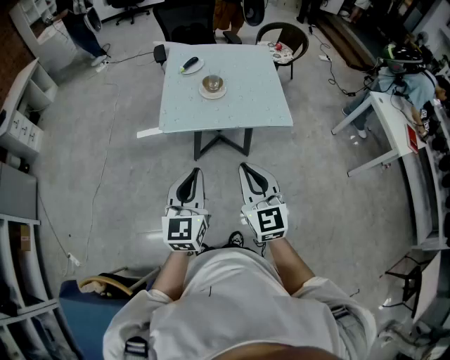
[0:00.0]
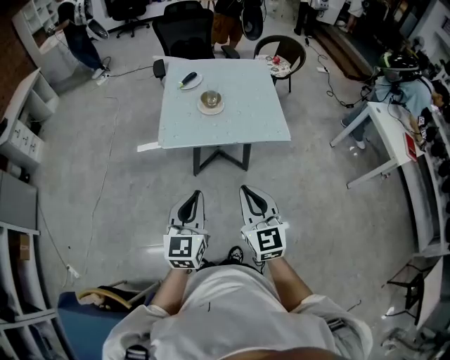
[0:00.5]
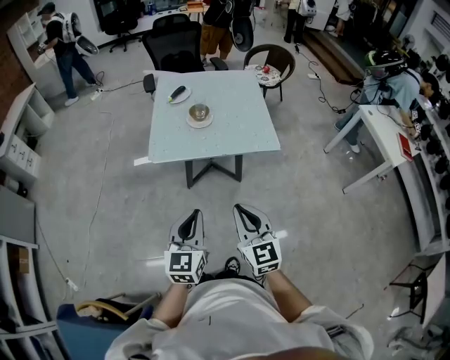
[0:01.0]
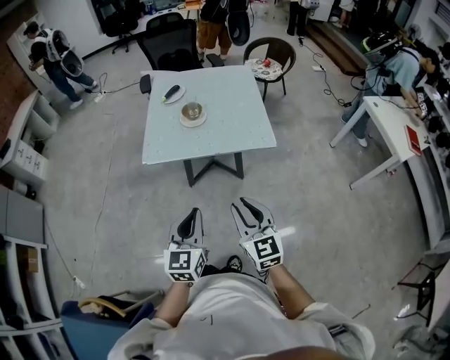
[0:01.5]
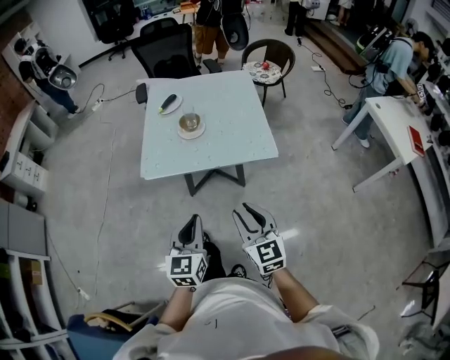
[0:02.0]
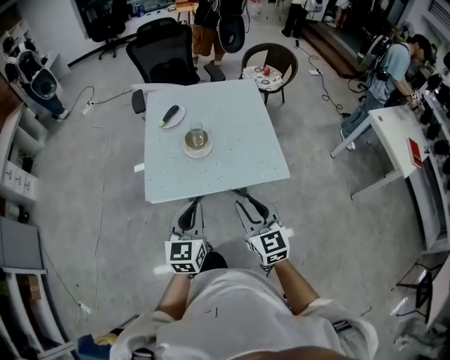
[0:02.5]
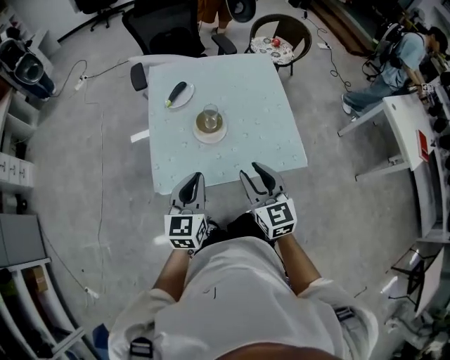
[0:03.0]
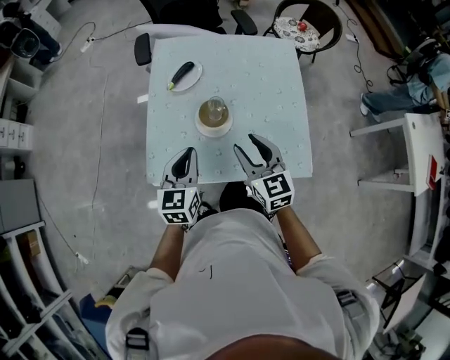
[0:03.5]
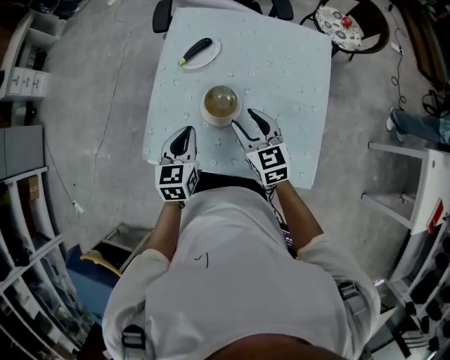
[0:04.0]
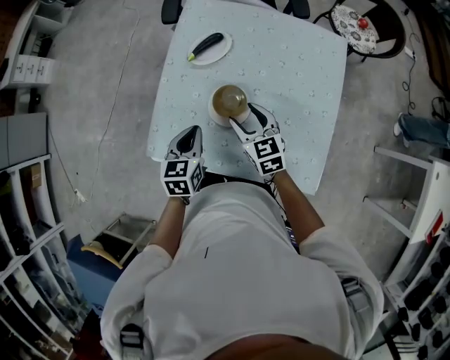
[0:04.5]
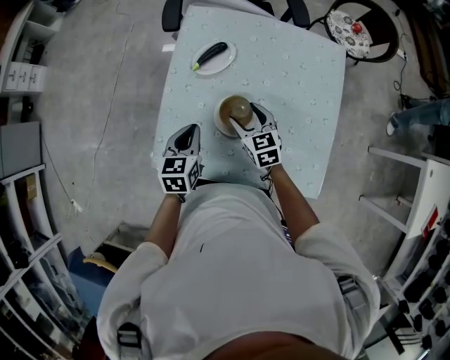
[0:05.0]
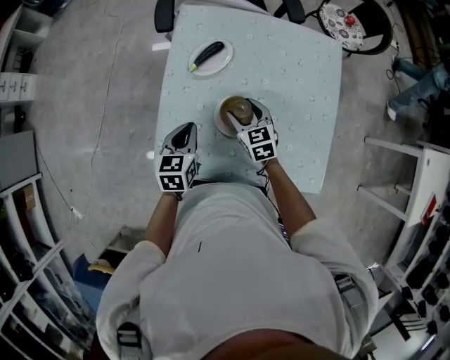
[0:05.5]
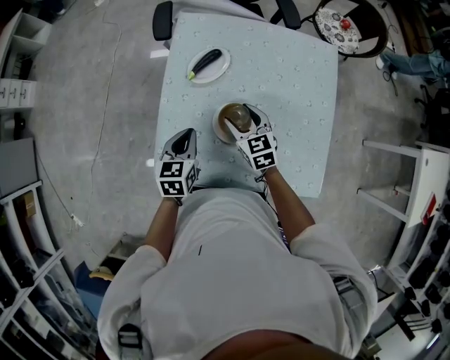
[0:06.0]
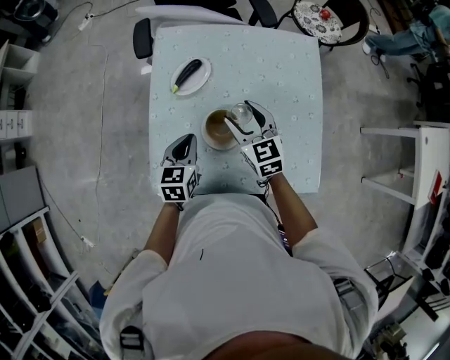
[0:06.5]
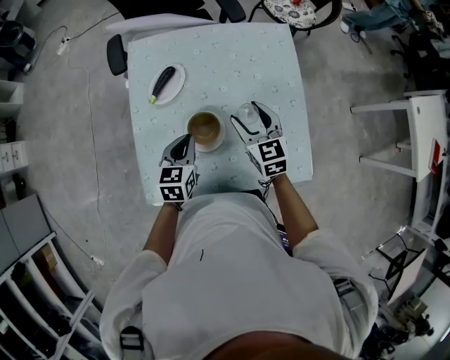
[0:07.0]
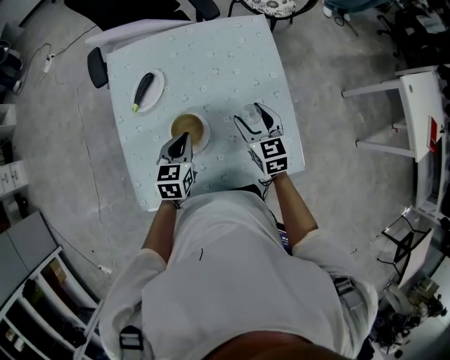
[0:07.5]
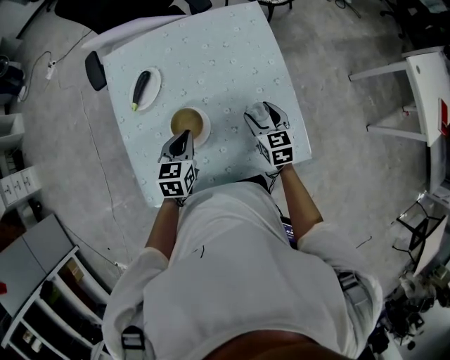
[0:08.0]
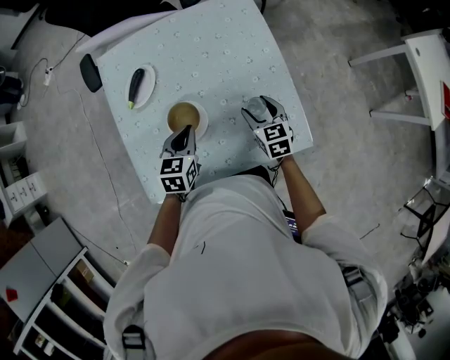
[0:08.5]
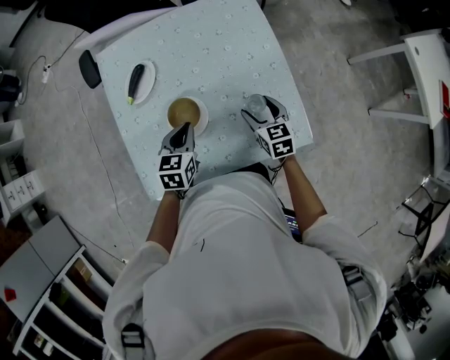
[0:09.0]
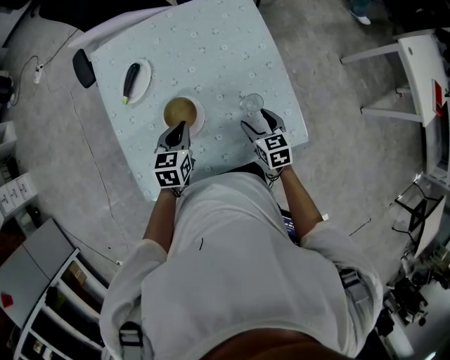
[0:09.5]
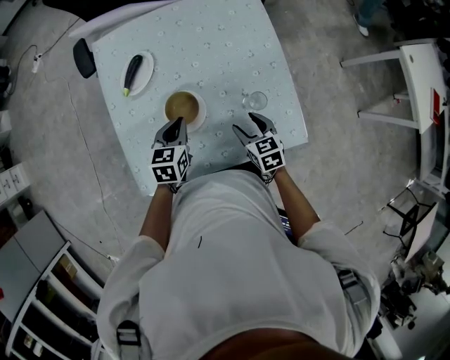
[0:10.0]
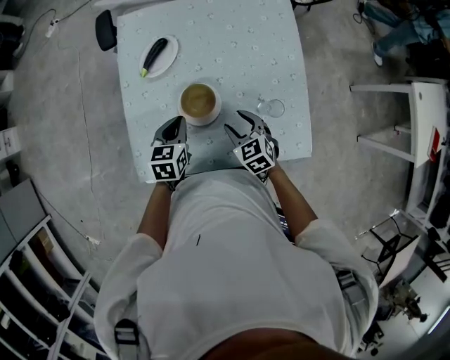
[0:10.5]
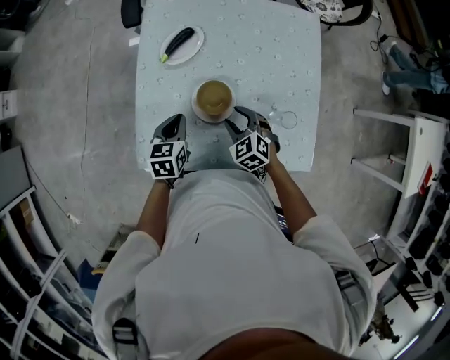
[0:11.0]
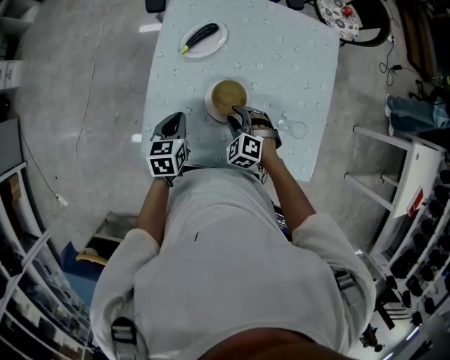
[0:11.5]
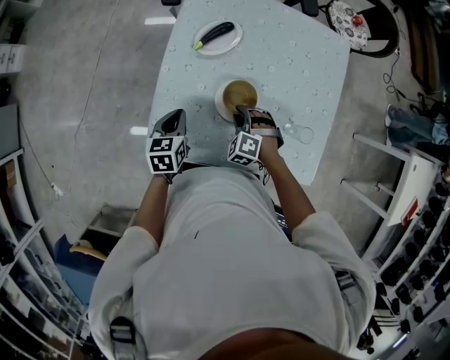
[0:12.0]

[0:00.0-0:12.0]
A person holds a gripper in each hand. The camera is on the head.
0:00.0 to 0:02.0: The grippers both shift to the right and downward by roughly 15 cm. The right gripper opens its fingers.
0:02.0 to 0:04.0: Both grippers are carried forward, approximately 50 cm. The left gripper changes its angle by approximately 20 degrees; the right gripper turns by approximately 20 degrees.
0:04.0 to 0:06.0: The left gripper travels forward, to the left and downward by approximately 10 cm. Meanwhile the right gripper goes roughly 15 cm forward, downward and to the left.
0:06.0 to 0:08.0: The right gripper shifts some 25 cm to the right, and swivels roughly 30 degrees. Meanwhile the left gripper moves to the right, some 15 cm, and turns by about 20 degrees.
0:08.0 to 0:10.0: The right gripper goes about 10 cm backward.
0:10.0 to 0:12.0: Both grippers move to the left, approximately 20 cm. The left gripper swivels about 30 degrees; the right gripper twists roughly 80 degrees counterclockwise, seen from behind, and closes up.

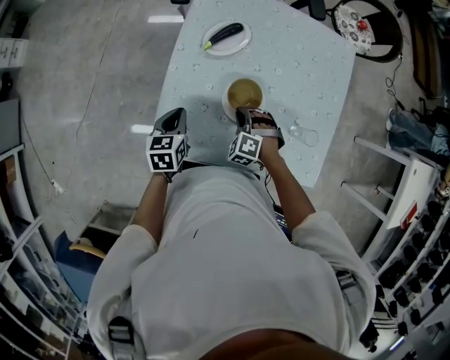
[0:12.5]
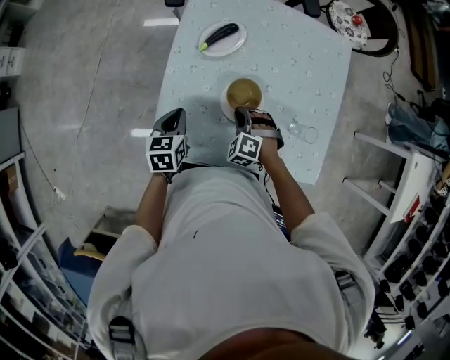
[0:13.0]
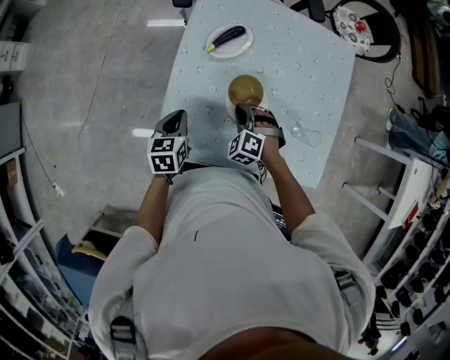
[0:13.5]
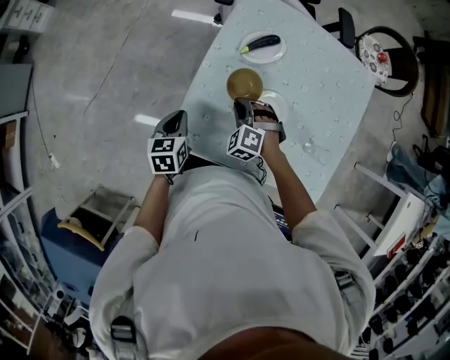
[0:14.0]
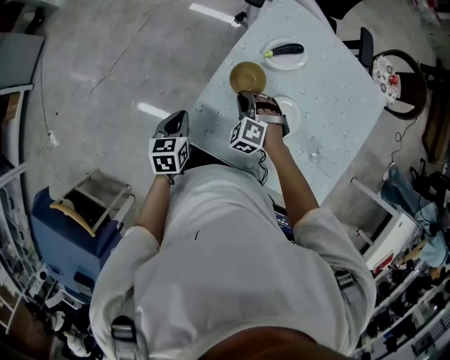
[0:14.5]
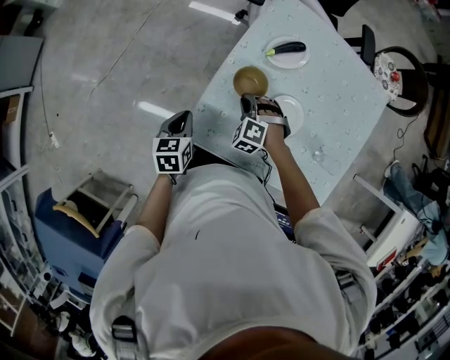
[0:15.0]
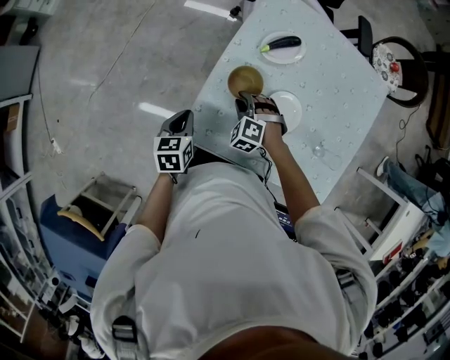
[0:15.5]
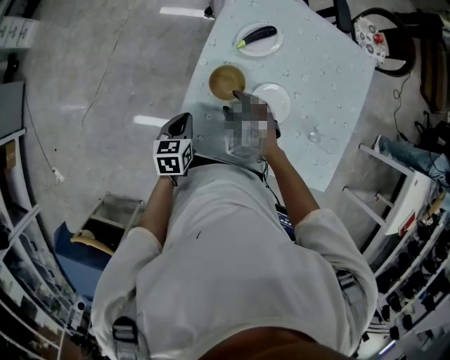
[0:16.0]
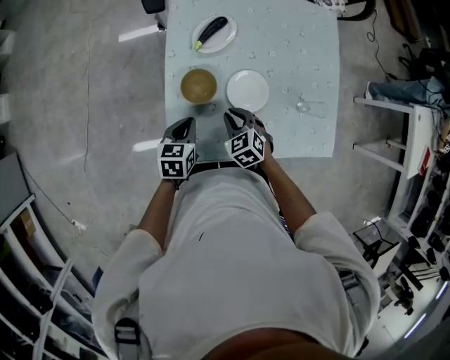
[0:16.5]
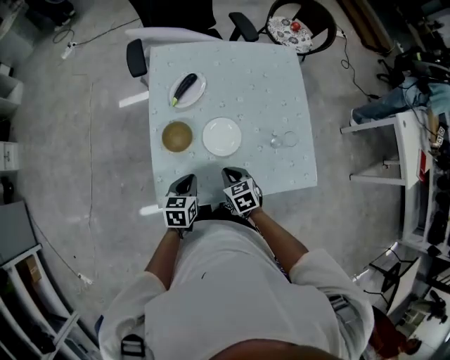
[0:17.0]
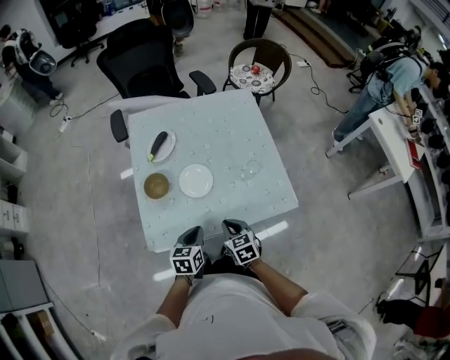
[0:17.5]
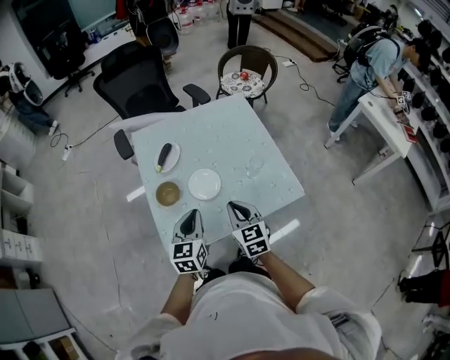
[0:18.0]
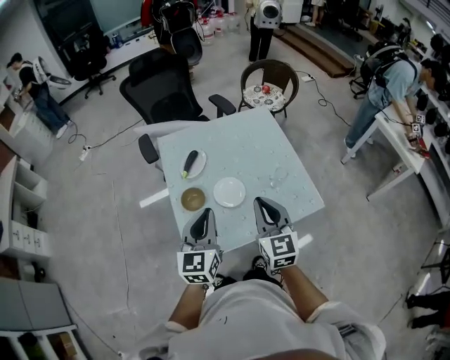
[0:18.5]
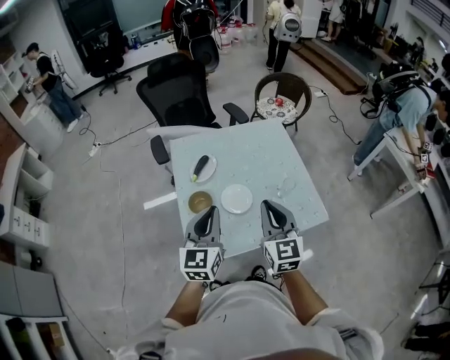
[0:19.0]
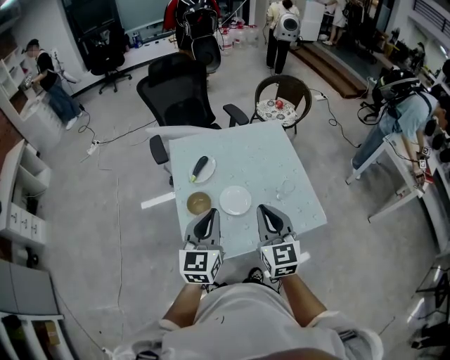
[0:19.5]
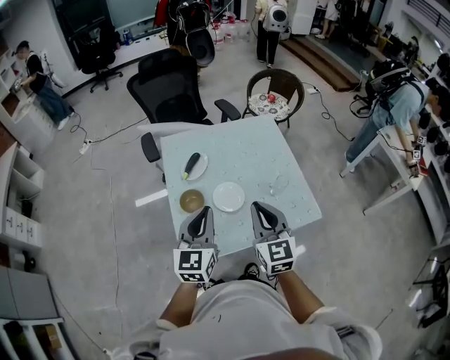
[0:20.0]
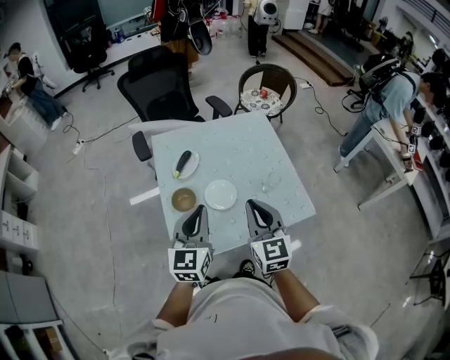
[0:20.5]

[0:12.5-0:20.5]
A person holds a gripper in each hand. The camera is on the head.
0:12.5 to 0:14.5: The left gripper moves to the left and backward, about 15 cm. Meanwhile the right gripper is displaced to the left by approximately 15 cm.
0:14.5 to 0:16.5: The left gripper moves some 15 cm, and turns by some 40 degrees. The right gripper ends up approximately 10 cm from where it was, twists about 60 degrees clockwise, seen from behind, and opens and closes again.
0:16.5 to 0:18.5: The left gripper moves upward, about 30 cm, and angles its fingers upward, by roughly 40 degrees, while the right gripper moves upward and to the right, about 35 cm, and tilts its fingers approximately 40 degrees upward.
0:18.5 to 0:20.5: The grippers stay close to where they were, moving slightly.

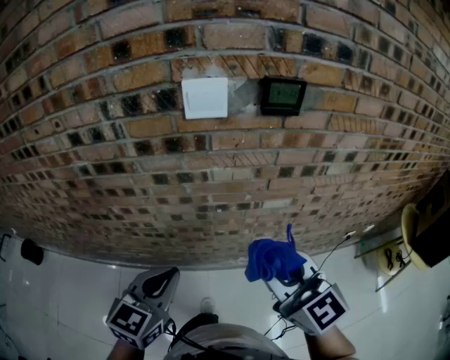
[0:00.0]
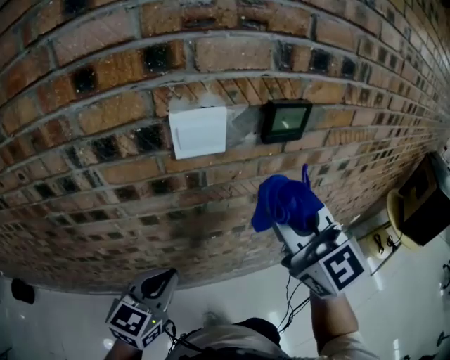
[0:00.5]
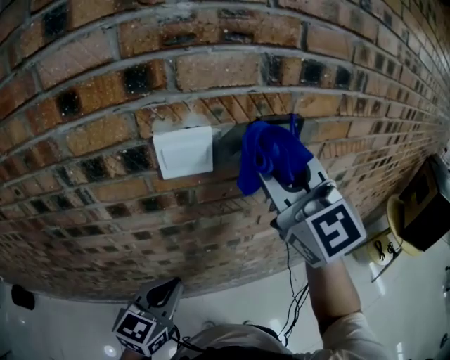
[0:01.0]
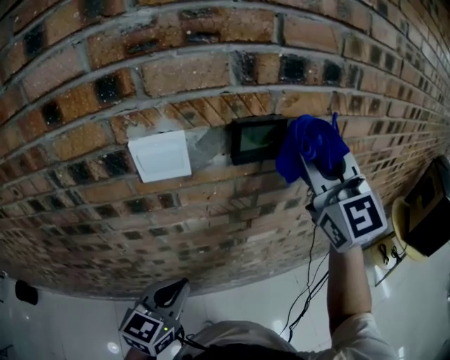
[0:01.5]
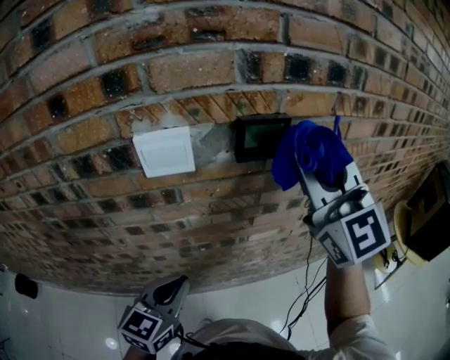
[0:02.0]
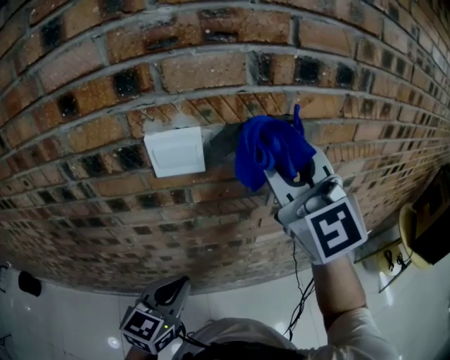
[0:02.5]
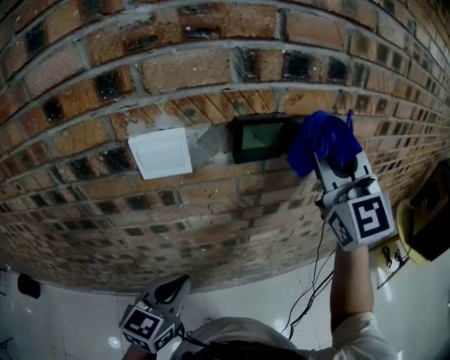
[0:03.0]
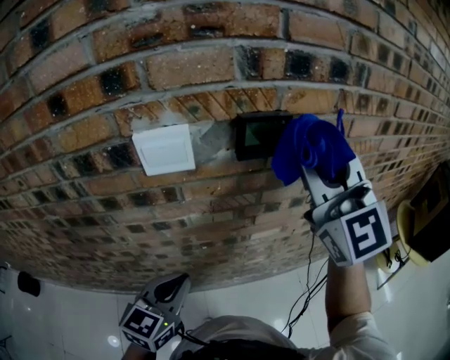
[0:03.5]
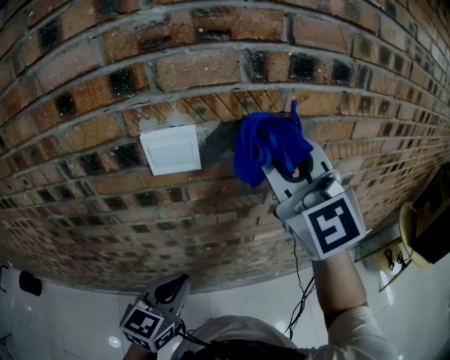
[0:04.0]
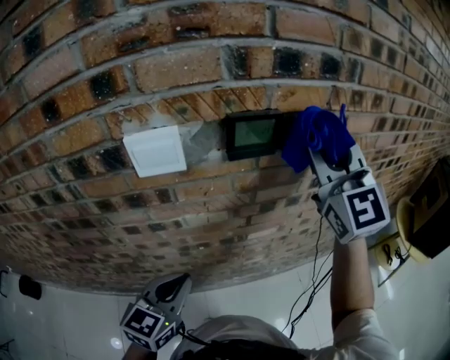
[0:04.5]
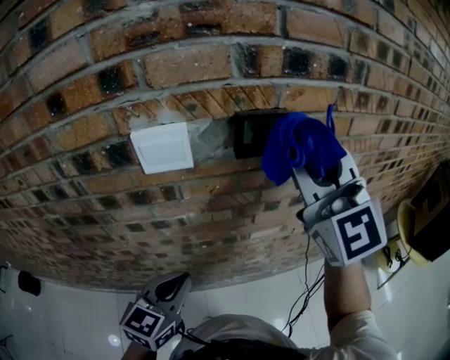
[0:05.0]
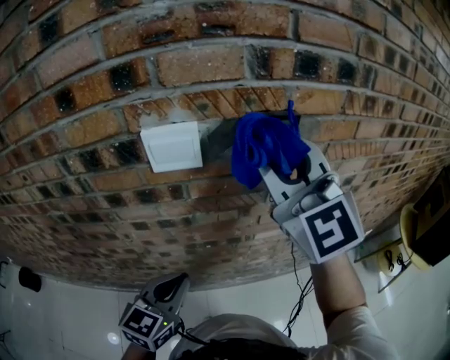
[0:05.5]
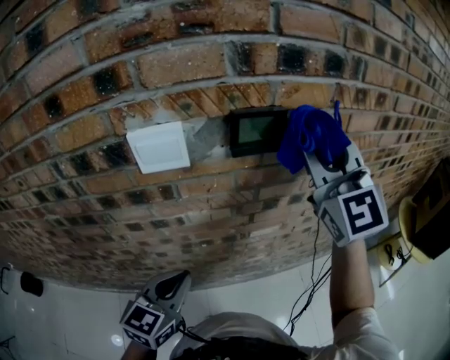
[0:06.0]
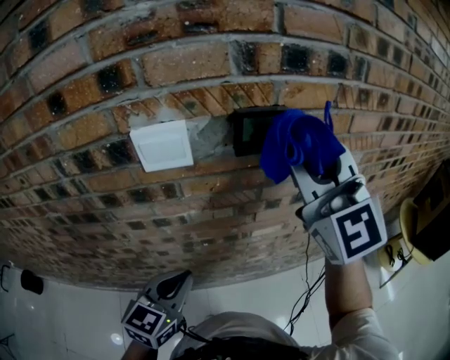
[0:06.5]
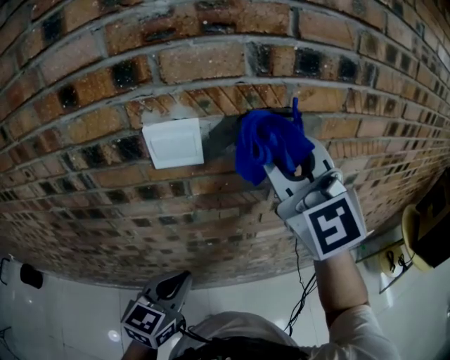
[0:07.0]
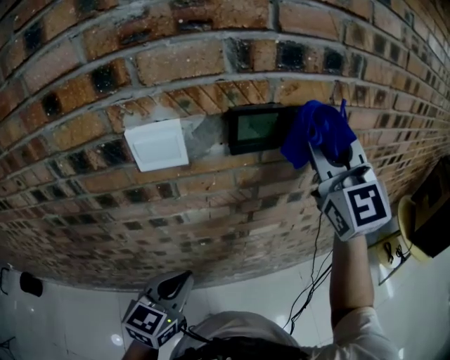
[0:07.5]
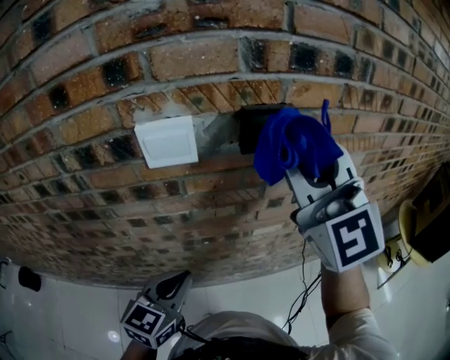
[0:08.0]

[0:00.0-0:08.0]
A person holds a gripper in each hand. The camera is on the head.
0:00.0 to 0:02.0: The left gripper is displaced forward by about 10 cm; the right gripper moves forward and upward, roughly 30 cm, and rotates some 30 degrees.
0:02.0 to 0:04.0: The right gripper goes left and right, some 10 cm each way, reversing 2 times.
0:04.0 to 0:06.0: The right gripper swings left and right, about 15 cm each way, with 2 reversals.
0:06.0 to 0:08.0: The right gripper goes left and right, about 10 cm each way, reversing 2 times.
